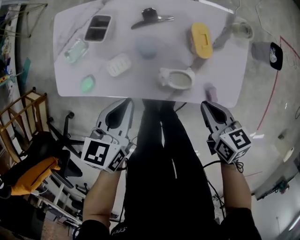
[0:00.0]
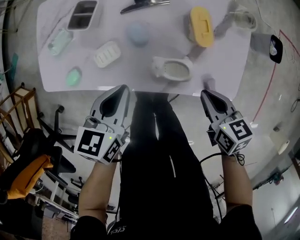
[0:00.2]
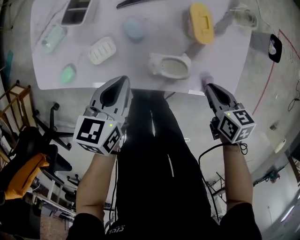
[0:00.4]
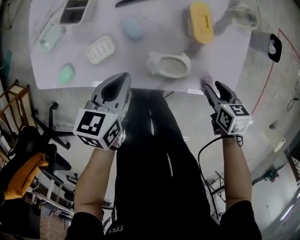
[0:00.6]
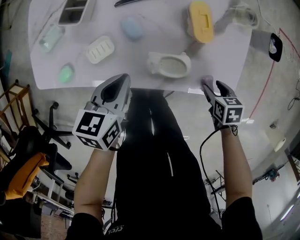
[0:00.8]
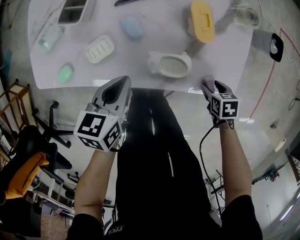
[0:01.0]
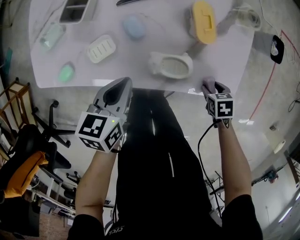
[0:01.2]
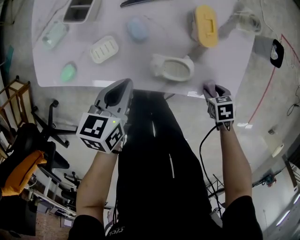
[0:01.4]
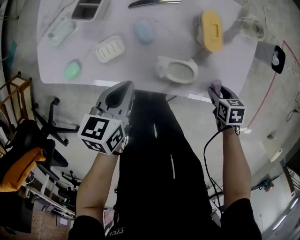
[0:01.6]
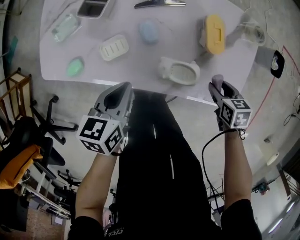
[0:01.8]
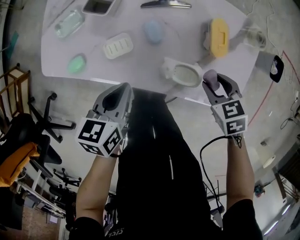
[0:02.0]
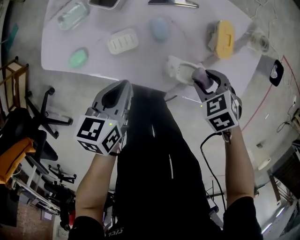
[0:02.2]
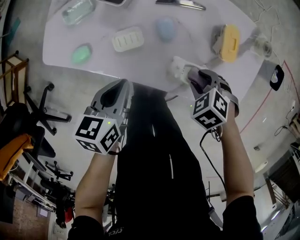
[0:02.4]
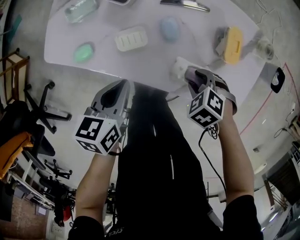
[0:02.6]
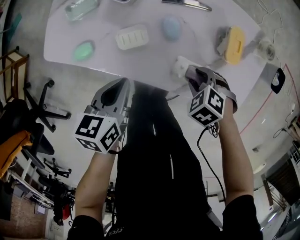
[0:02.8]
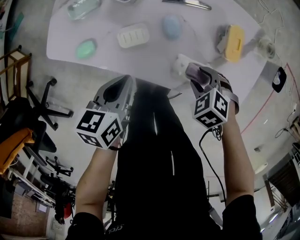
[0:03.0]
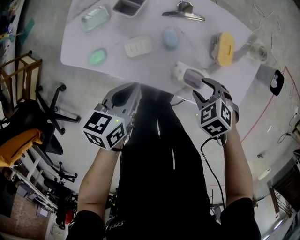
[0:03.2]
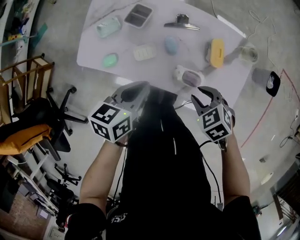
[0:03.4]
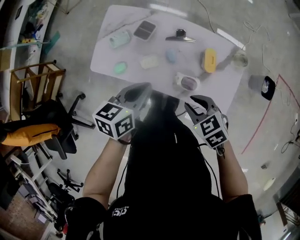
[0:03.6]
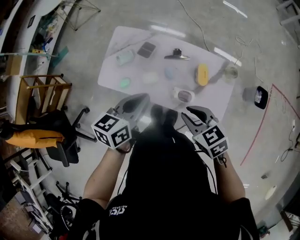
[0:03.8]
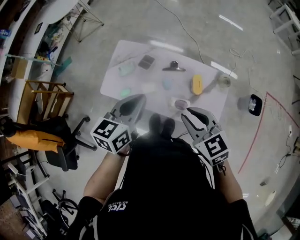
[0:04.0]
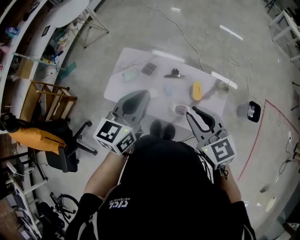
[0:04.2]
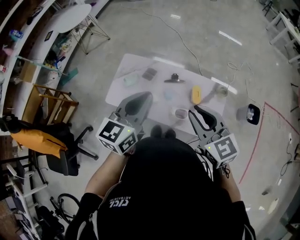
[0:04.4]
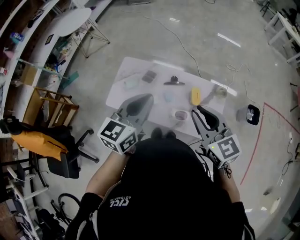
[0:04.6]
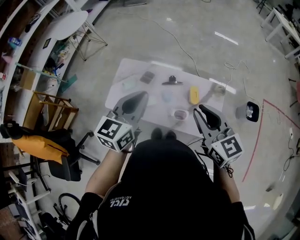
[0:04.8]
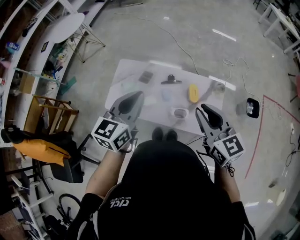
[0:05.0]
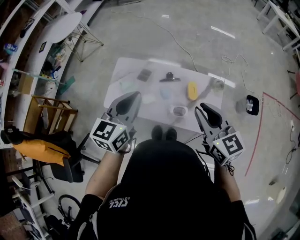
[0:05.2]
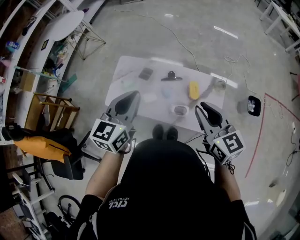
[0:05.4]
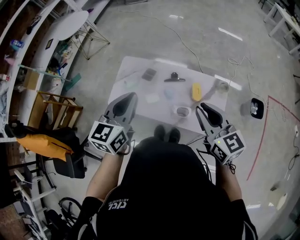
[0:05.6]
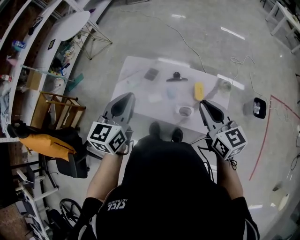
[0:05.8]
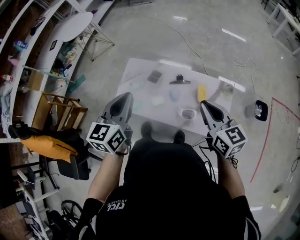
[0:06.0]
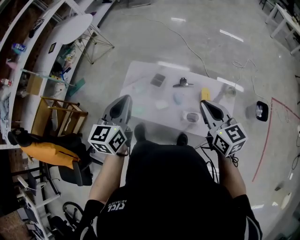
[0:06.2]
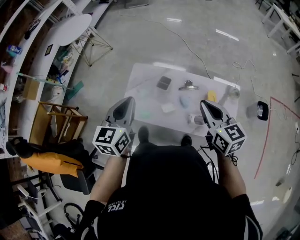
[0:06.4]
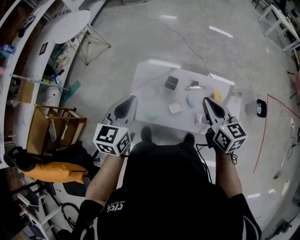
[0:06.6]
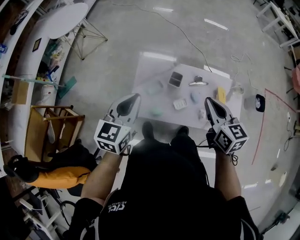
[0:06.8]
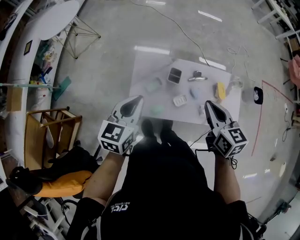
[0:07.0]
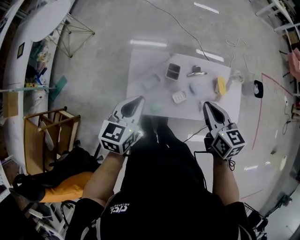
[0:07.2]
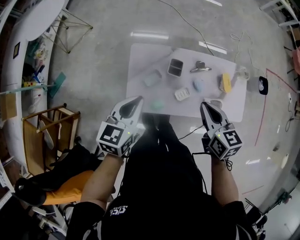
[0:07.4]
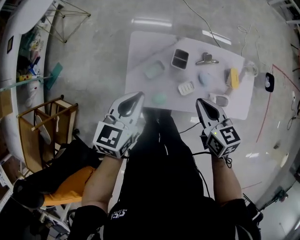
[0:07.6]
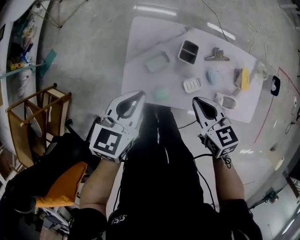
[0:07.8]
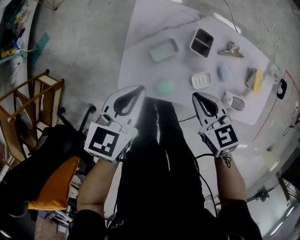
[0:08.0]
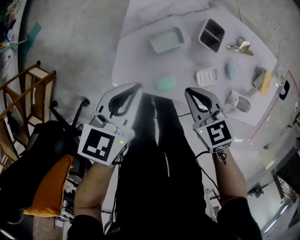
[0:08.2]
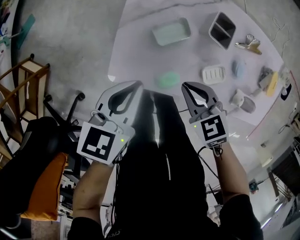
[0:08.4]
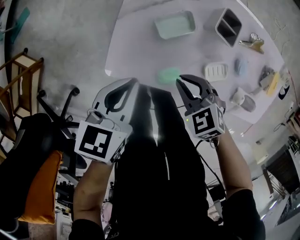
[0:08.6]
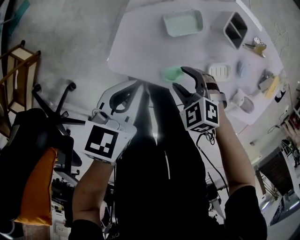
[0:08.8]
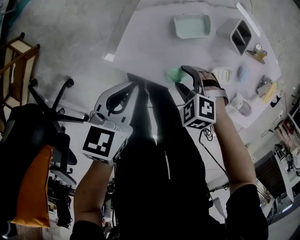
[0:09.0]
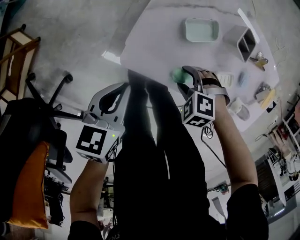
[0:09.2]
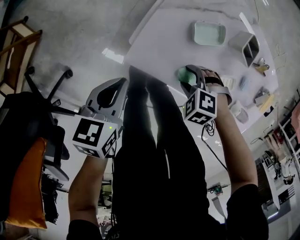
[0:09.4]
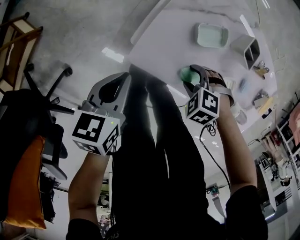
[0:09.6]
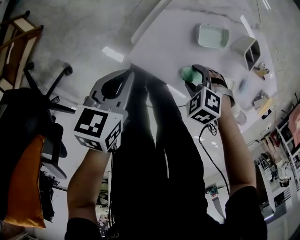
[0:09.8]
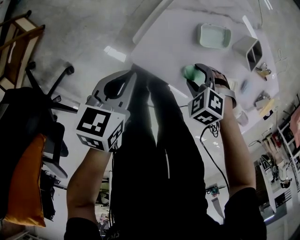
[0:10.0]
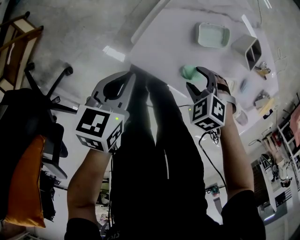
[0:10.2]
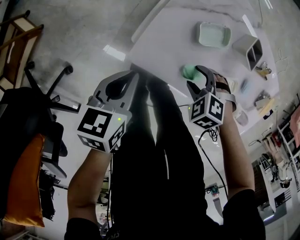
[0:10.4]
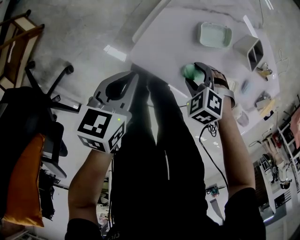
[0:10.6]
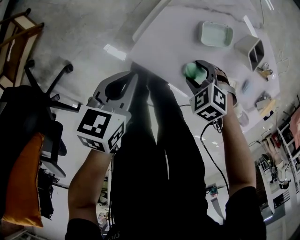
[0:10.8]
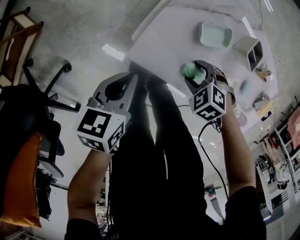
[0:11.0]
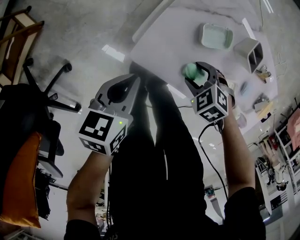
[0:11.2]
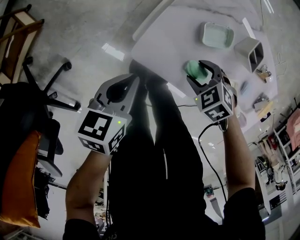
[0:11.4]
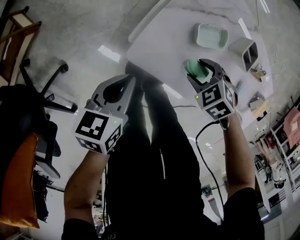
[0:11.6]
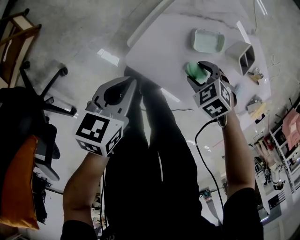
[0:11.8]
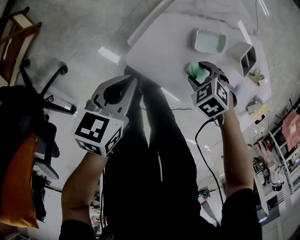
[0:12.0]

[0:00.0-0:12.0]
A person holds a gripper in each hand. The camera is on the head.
0:00.0 to 0:01.6: The left gripper moves downward, approximately 10 cm. The right gripper heads downward, covering some 20 cm, points its fingers roughly 30 degrees further downward, and opens its fingers.
0:01.6 to 0:03.0: The right gripper ends up approximately 20 cm from where it was, and twists some 60 degrees counterclockwise, seen from behind. The left gripper moves about 5 cm.
0:03.0 to 0:04.4: The grippers both shift upward by roughly 50 cm. The left gripper angles its fingers upward, by approximately 30 degrees. The right gripper tips its fingers upward by approximately 60 degrees, and closes.
0:04.4 to 0:06.0: The left gripper moves to the left, some 5 cm, while the right gripper shifts by about 5 cm.
0:06.0 to 0:07.6: The right gripper goes some 35 cm to the left and downward, and rotates approximately 20 degrees. Meanwhile the left gripper heads to the left, downward and forward, covering approximately 35 cm, and rotates roughly 30 degrees.
0:07.6 to 0:09.0: The two grippers go about 35 cm downward. The left gripper changes its angle by about 30 degrees. The right gripper rotates around the line of its fingers by some 70 degrees, counterclockwise from behind, and opens its fingers.
0:09.0 to 0:10.4: The left gripper shifts by about 5 cm.
0:10.4 to 0:12.0: The grippers make only small movements.

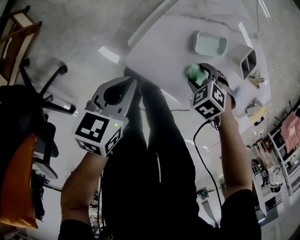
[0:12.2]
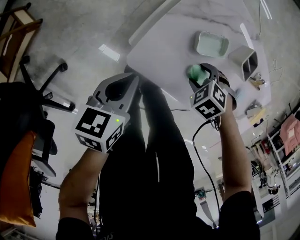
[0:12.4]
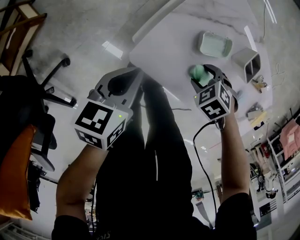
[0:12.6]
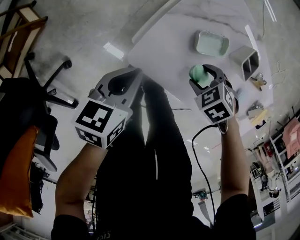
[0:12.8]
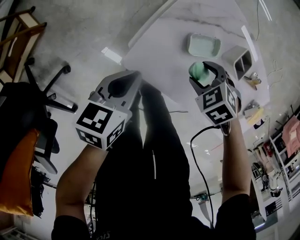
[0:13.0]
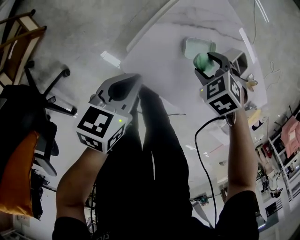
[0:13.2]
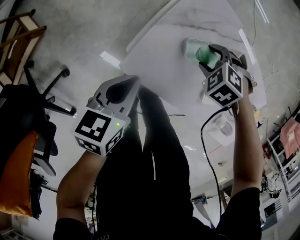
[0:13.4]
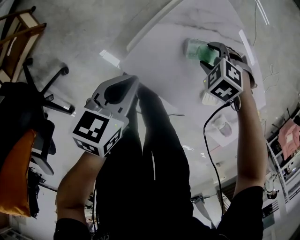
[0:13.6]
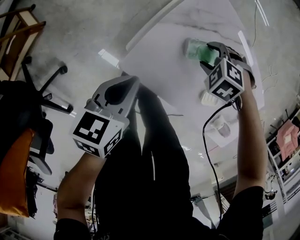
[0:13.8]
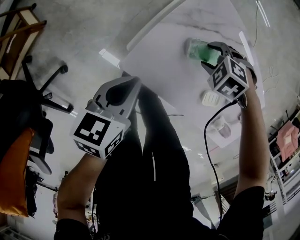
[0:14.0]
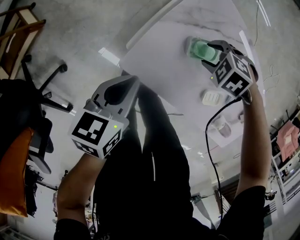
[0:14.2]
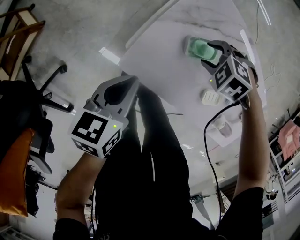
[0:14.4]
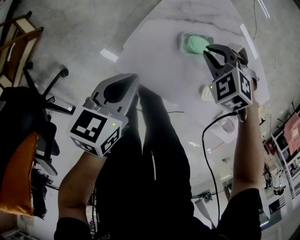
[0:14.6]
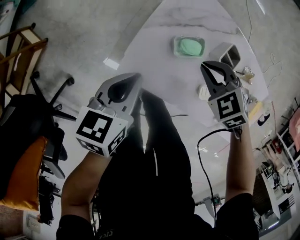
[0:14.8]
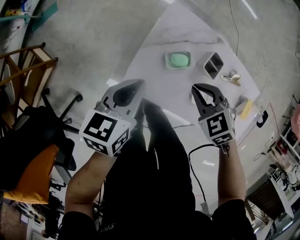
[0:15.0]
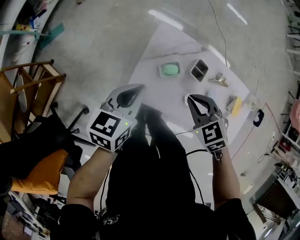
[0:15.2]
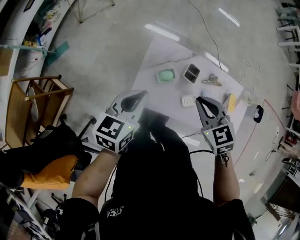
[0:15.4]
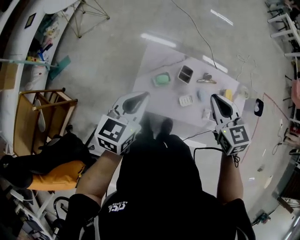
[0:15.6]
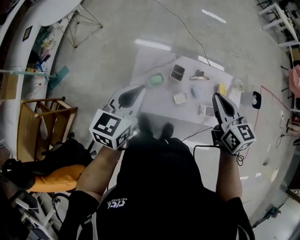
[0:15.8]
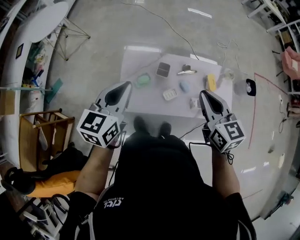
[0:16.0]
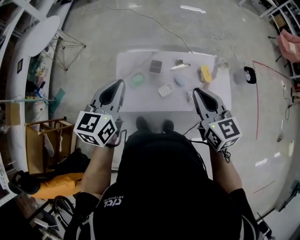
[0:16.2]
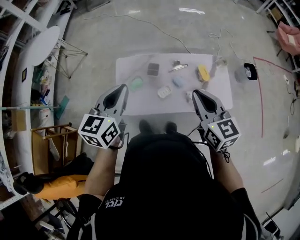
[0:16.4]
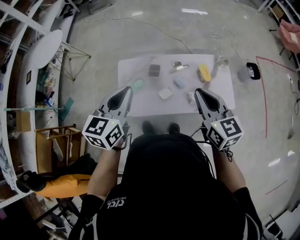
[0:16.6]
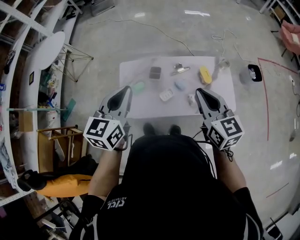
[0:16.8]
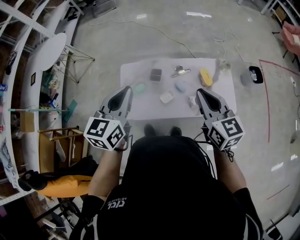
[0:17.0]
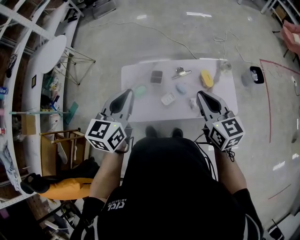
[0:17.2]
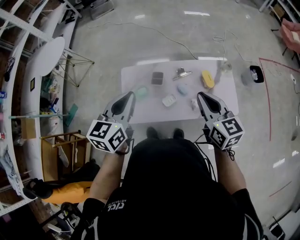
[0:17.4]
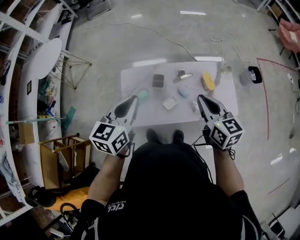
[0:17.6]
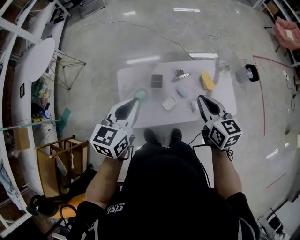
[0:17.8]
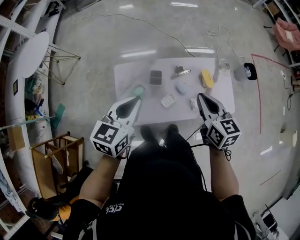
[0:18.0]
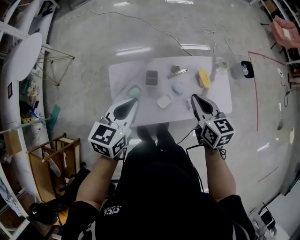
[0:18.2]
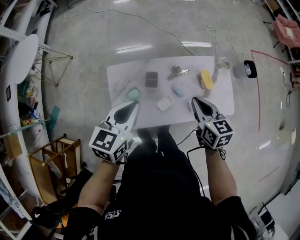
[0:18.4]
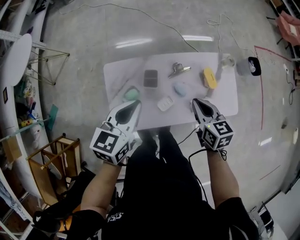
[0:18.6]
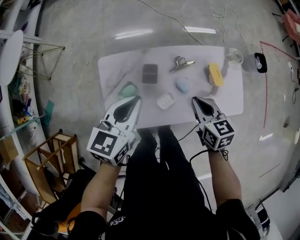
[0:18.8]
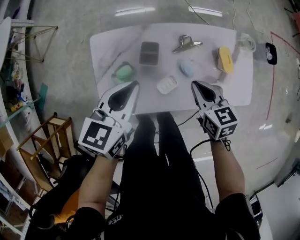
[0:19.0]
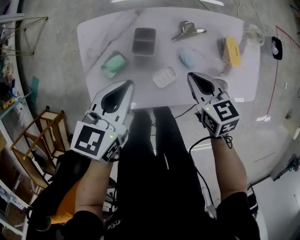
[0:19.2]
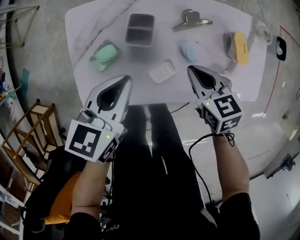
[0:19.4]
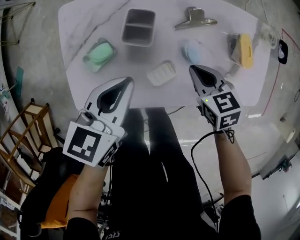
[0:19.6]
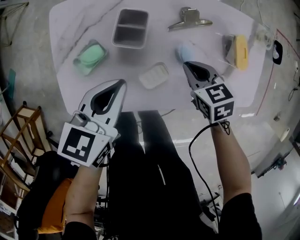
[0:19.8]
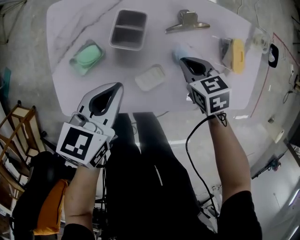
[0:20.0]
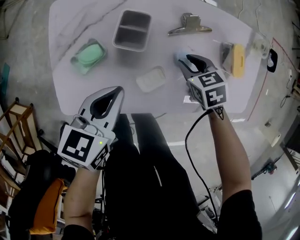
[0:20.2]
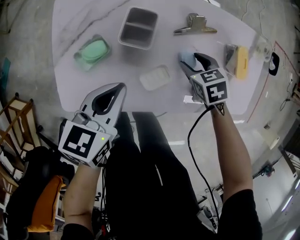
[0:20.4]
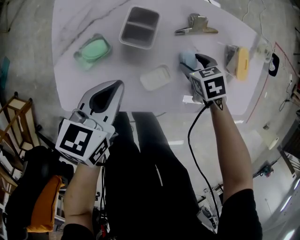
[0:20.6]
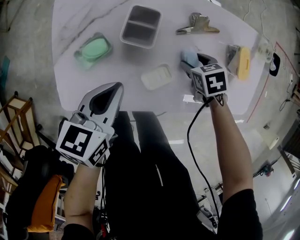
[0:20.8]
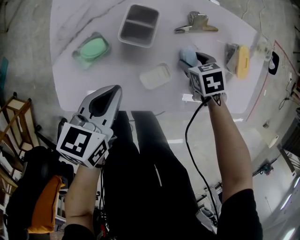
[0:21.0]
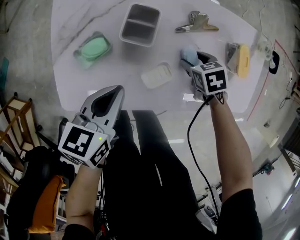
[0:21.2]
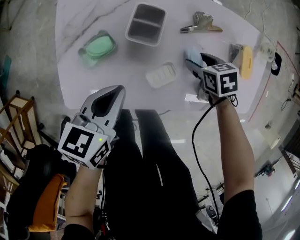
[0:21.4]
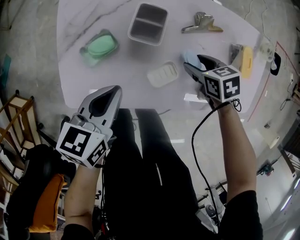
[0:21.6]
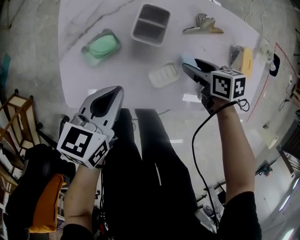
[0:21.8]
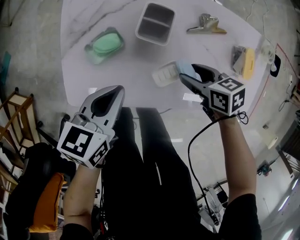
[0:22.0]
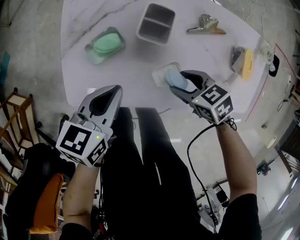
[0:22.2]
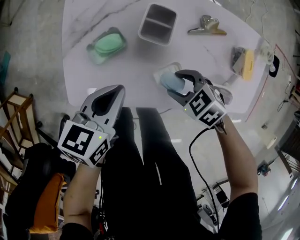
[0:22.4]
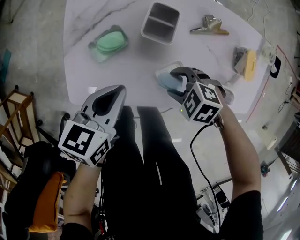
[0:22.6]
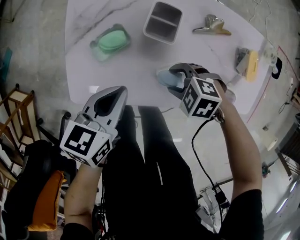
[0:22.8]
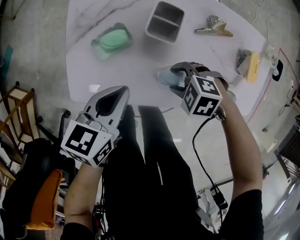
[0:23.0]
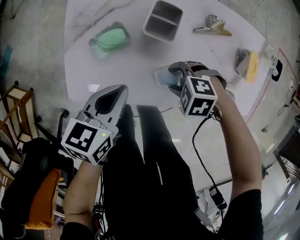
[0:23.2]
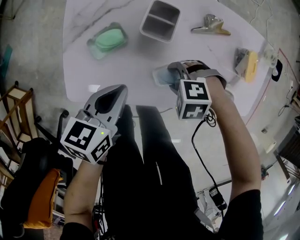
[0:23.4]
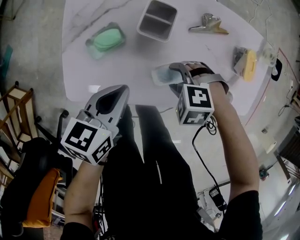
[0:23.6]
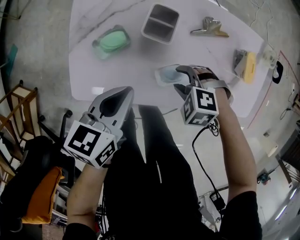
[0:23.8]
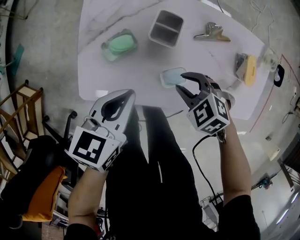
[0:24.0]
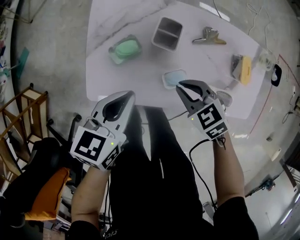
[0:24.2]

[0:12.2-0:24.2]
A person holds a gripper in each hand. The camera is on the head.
0:12.2 to 0:13.8: The left gripper changes place by some 5 cm. The right gripper ends up roughly 10 cm from where it was.
0:13.8 to 0:15.2: The two grippers go some 25 cm upward. The right gripper angles its fingers upward, by approximately 30 degrees, and closes up. The left gripper rotates about 20 degrees.
0:15.2 to 0:16.6: The left gripper goes approximately 30 cm upward and to the right, and rotates approximately 30 degrees; the right gripper travels upward, to the right and backward by some 40 cm, and points its fingers some 40 degrees further upward.
0:16.6 to 0:18.2: Both grippers travel together forward and downward, some 15 cm.
0:18.2 to 0:19.8: The grippers both shift downward by roughly 35 cm. The right gripper turns by some 40 degrees.
0:19.8 to 0:21.2: The left gripper moves about 5 cm. The right gripper shifts some 10 cm downward, and opens up.
0:21.2 to 0:22.6: The right gripper ends up some 15 cm from where it was, and rotates around the line of its fingers by about 50 degrees, counterclockwise from behind.
0:22.6 to 0:24.2: Both grippers travel together upward, about 10 cm. The right gripper turns by about 30 degrees, and closes.
